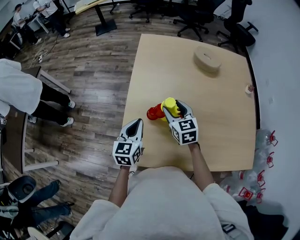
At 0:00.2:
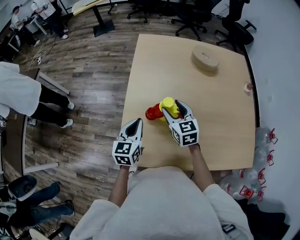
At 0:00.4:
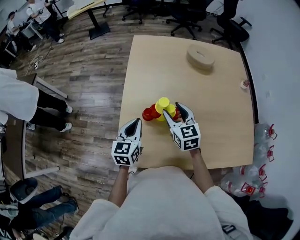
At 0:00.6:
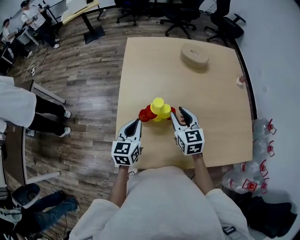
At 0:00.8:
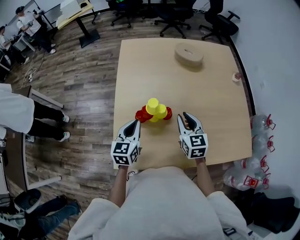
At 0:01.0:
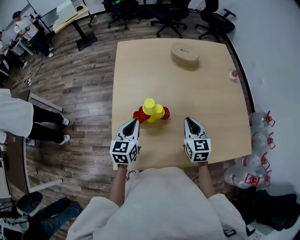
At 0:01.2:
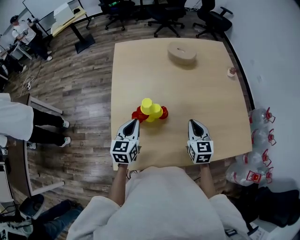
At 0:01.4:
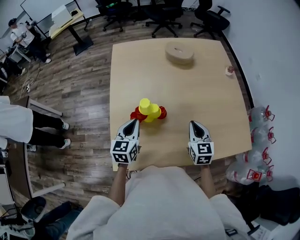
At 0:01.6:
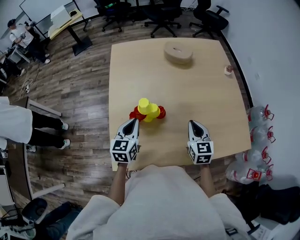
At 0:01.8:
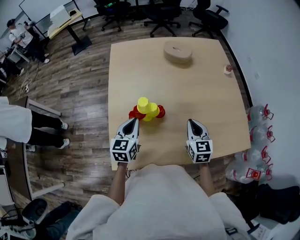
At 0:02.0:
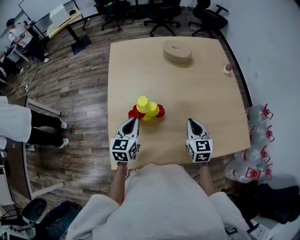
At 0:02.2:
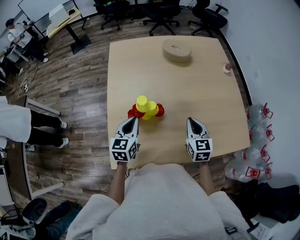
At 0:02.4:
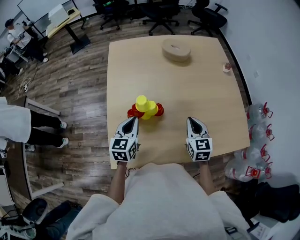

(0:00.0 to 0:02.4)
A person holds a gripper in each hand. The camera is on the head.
0:00.0 - 0:01.2: The left gripper shifts about 5 cm to the right, while the right gripper shifts some 20 cm to the right and backward, turns by approximately 20 degrees, and closes its fingers.
0:01.2 - 0:02.4: The grippers move only a little.

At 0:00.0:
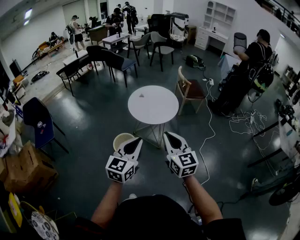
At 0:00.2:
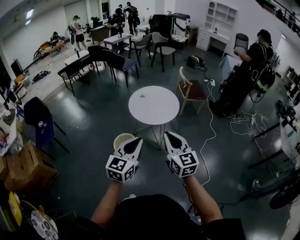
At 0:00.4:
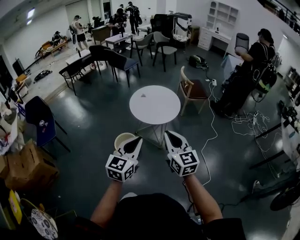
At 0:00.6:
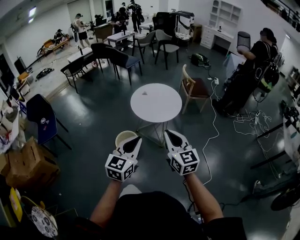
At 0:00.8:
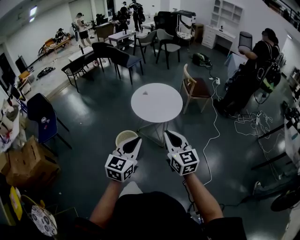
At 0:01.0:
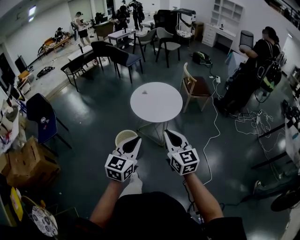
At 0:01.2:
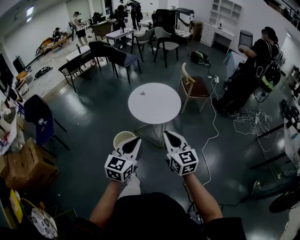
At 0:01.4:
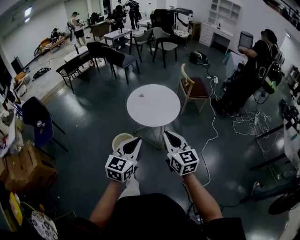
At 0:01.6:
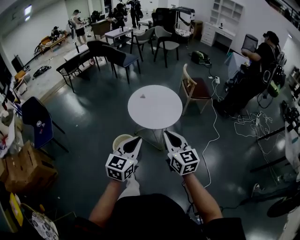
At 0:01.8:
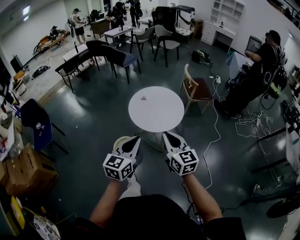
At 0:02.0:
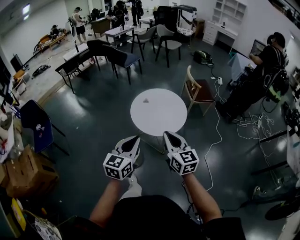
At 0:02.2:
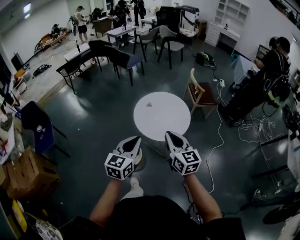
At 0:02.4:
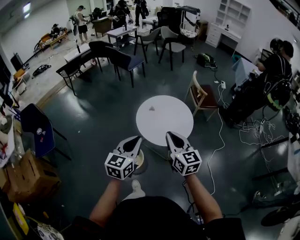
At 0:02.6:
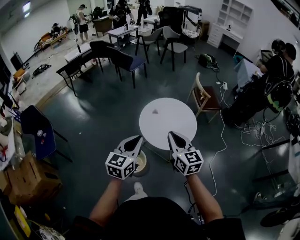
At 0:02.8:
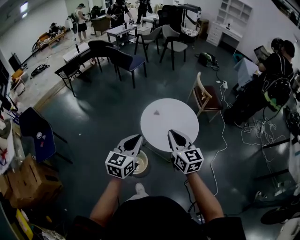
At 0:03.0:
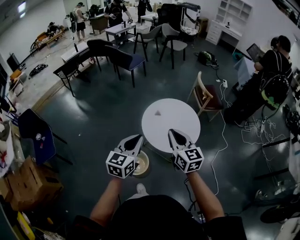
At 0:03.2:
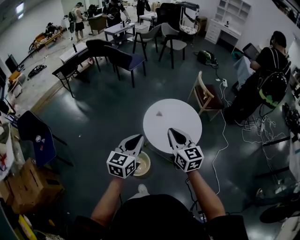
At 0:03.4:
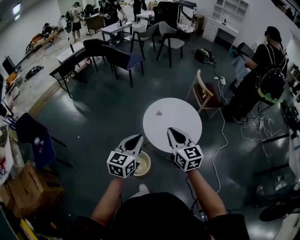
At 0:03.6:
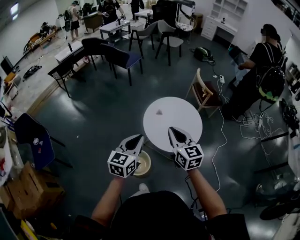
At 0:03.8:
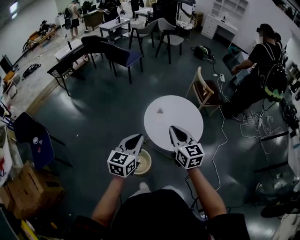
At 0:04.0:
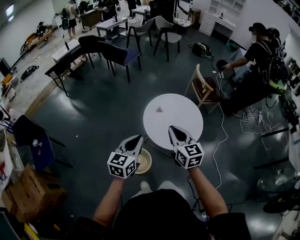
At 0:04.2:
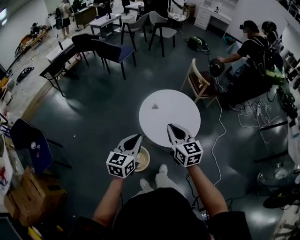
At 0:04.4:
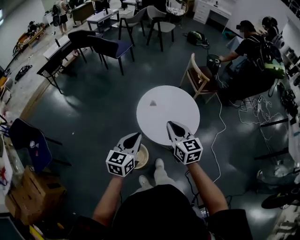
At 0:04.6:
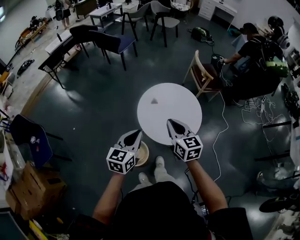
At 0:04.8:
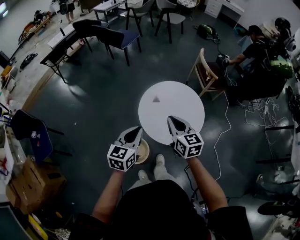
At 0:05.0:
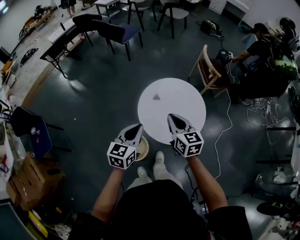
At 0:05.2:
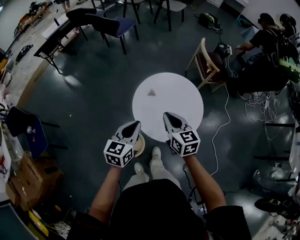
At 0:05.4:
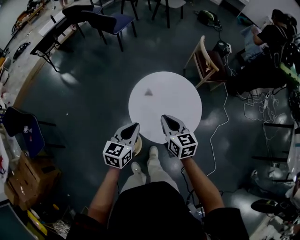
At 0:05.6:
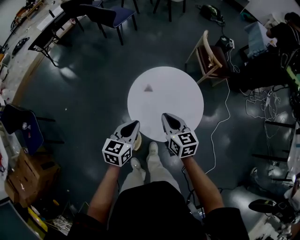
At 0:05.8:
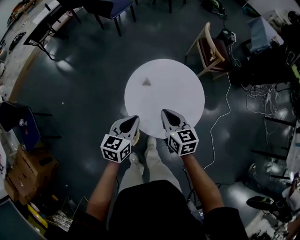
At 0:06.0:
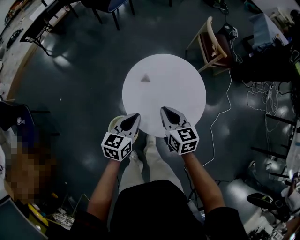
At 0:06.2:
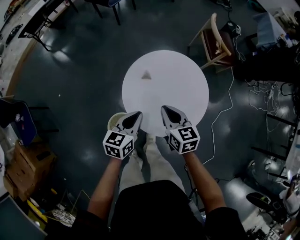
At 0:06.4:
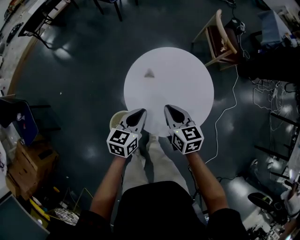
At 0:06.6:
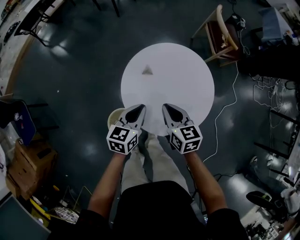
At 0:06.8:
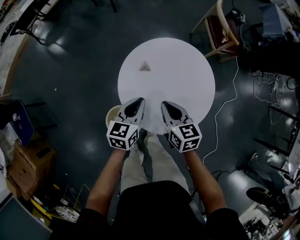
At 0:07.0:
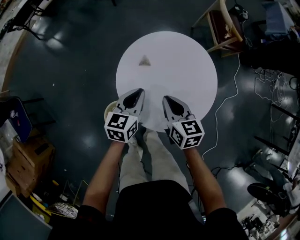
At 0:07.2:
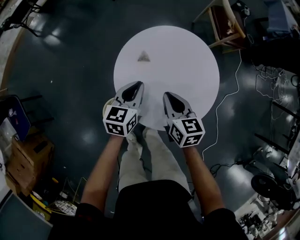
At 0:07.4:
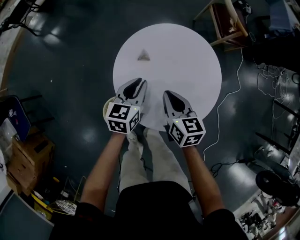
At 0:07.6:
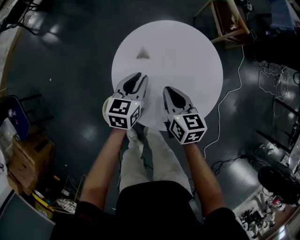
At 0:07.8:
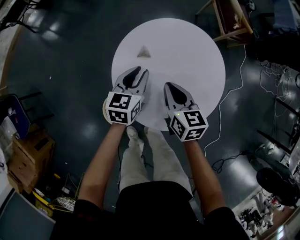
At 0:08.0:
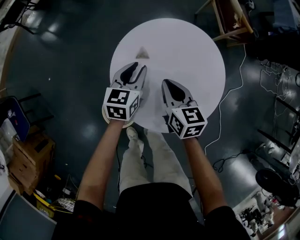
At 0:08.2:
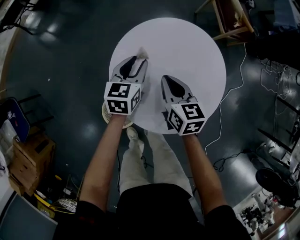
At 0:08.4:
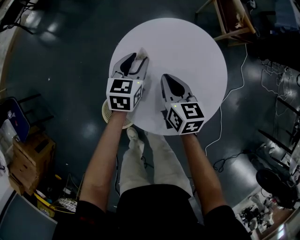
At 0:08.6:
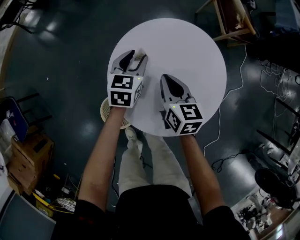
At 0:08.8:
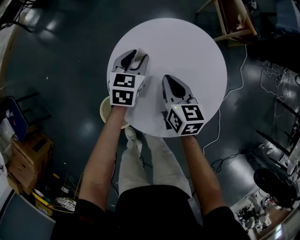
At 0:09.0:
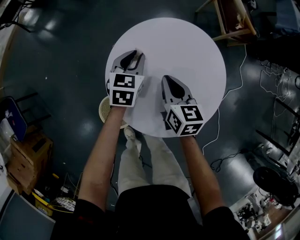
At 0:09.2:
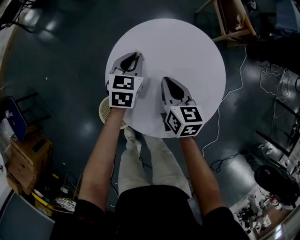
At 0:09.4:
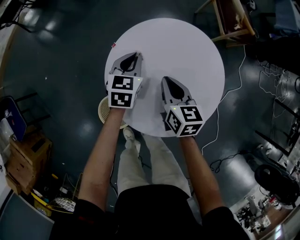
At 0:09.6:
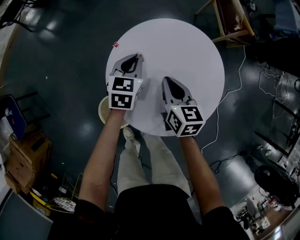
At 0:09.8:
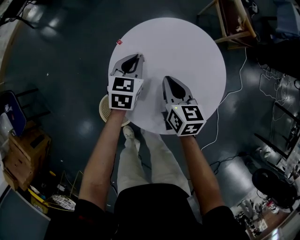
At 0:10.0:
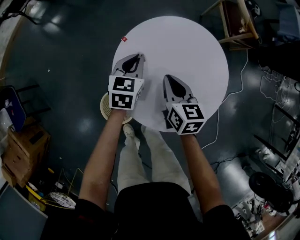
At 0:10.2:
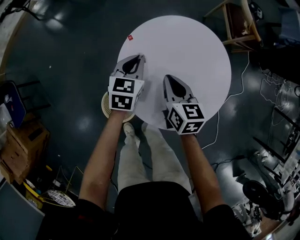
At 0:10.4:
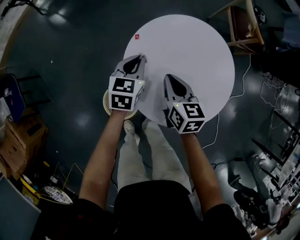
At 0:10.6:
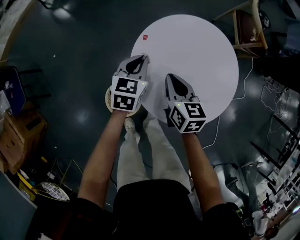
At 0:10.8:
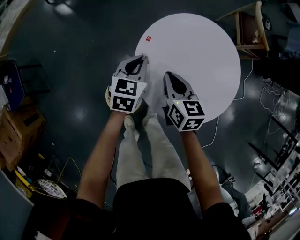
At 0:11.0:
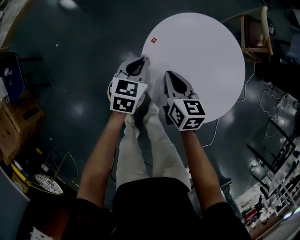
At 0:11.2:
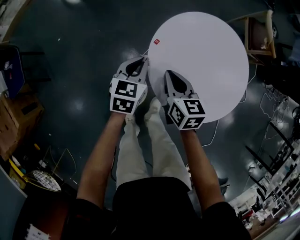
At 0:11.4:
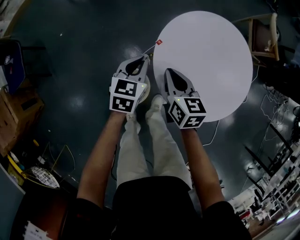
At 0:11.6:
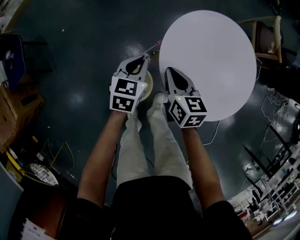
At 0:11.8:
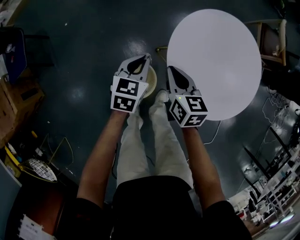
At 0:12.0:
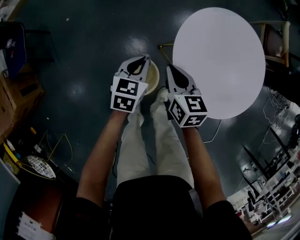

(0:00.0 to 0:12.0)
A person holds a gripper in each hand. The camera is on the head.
0:00.0 - 0:01.6: Both grippers travel together forward, roughly 15 cm.
0:01.6 - 0:03.0: The two grippers go roughly 35 cm forward and to the left.
0:03.0 - 0:04.4: The right gripper goes roughly 10 cm forward and downward; the left gripper travels downward and forward by roughly 10 cm.
0:04.4 - 0:06.0: The right gripper travels downward and forward by approximately 25 cm, while the left gripper moves downward, forward and to the right, approximately 30 cm.
0:06.0 - 0:07.6: Both grippers move downward and forward, about 20 cm.
0:07.6 - 0:09.0: The right gripper travels forward by approximately 5 cm. Meanwhile the left gripper goes about 10 cm forward and downward.
0:09.0 - 0:10.4: The right gripper moves to the left, roughly 5 cm; the left gripper moves backward and to the left, some 10 cm.
0:10.4 - 0:12.0: The left gripper travels to the left and backward by roughly 25 cm. Meanwhile the right gripper travels to the left by some 20 cm.

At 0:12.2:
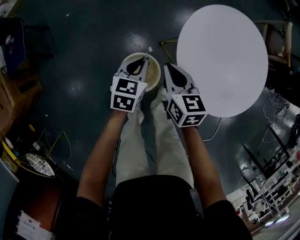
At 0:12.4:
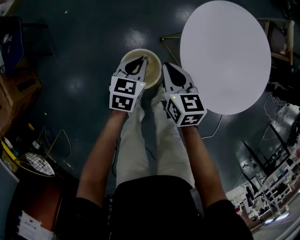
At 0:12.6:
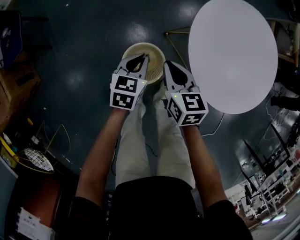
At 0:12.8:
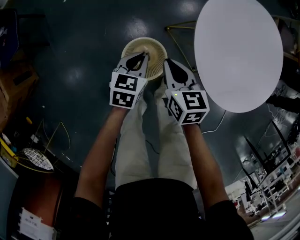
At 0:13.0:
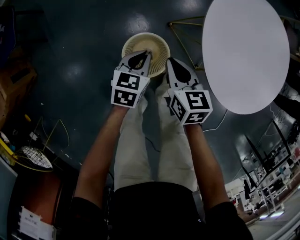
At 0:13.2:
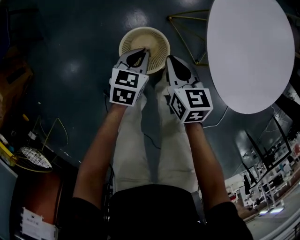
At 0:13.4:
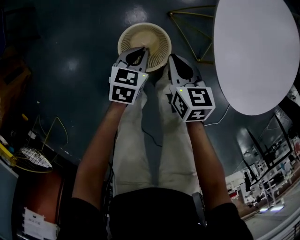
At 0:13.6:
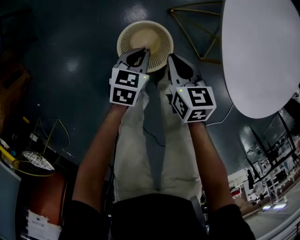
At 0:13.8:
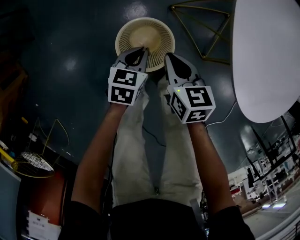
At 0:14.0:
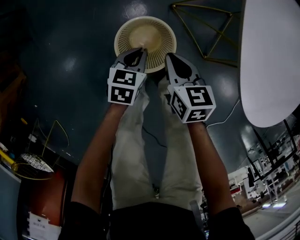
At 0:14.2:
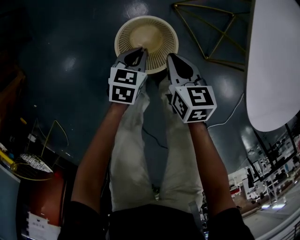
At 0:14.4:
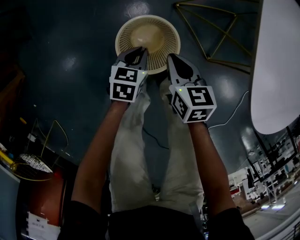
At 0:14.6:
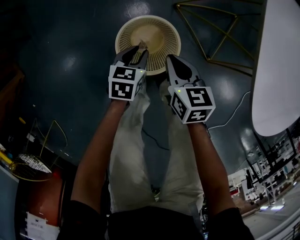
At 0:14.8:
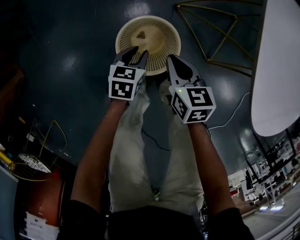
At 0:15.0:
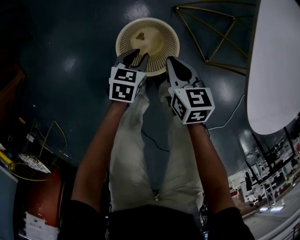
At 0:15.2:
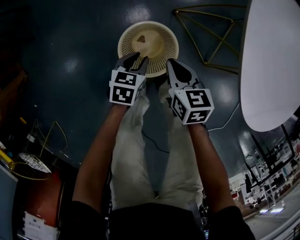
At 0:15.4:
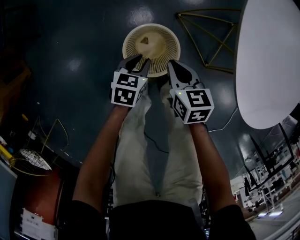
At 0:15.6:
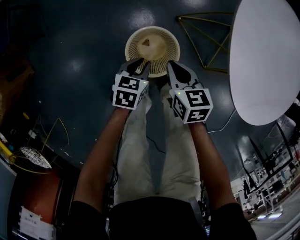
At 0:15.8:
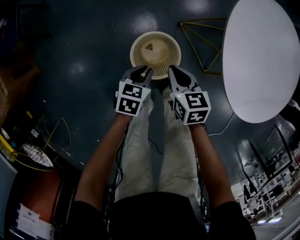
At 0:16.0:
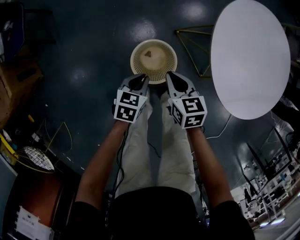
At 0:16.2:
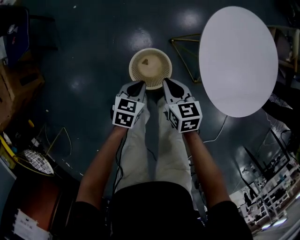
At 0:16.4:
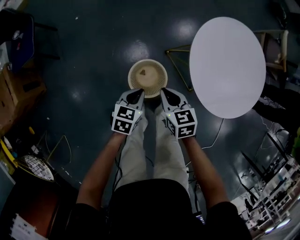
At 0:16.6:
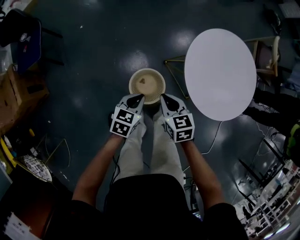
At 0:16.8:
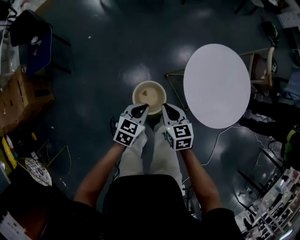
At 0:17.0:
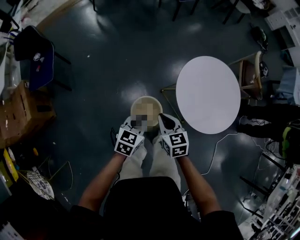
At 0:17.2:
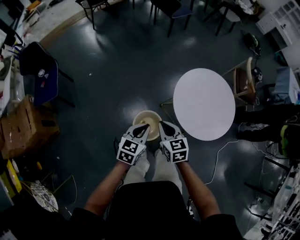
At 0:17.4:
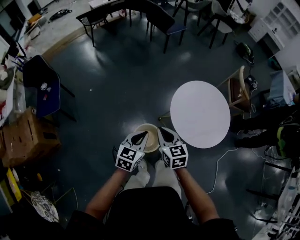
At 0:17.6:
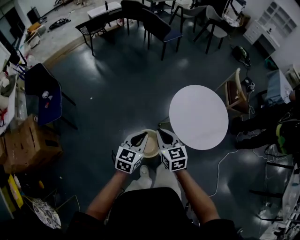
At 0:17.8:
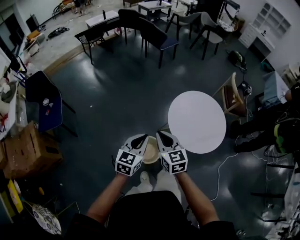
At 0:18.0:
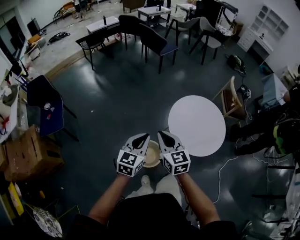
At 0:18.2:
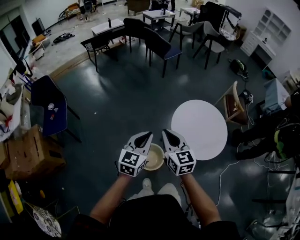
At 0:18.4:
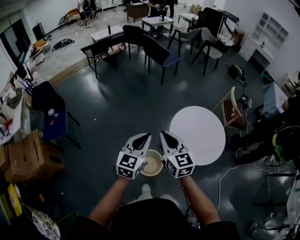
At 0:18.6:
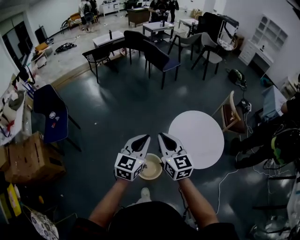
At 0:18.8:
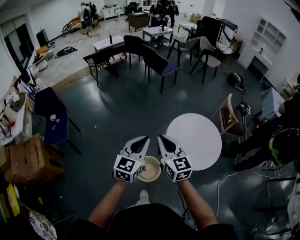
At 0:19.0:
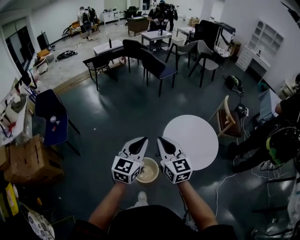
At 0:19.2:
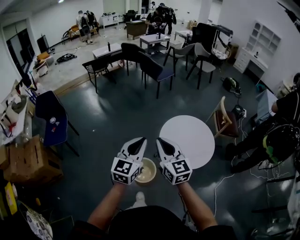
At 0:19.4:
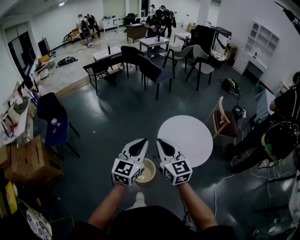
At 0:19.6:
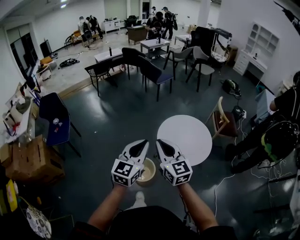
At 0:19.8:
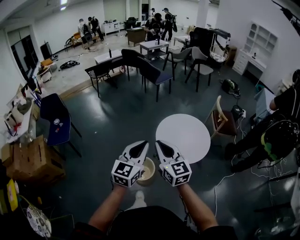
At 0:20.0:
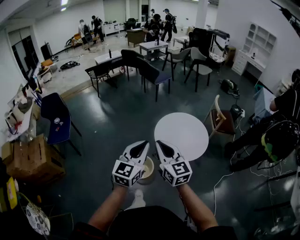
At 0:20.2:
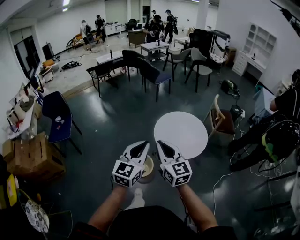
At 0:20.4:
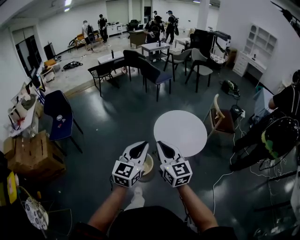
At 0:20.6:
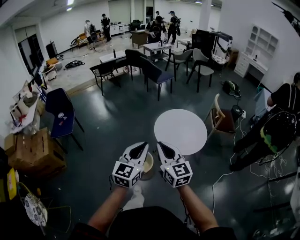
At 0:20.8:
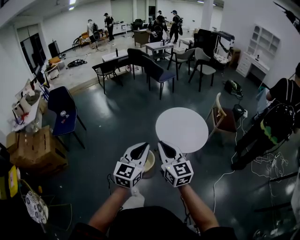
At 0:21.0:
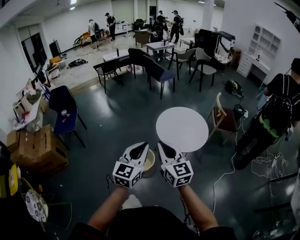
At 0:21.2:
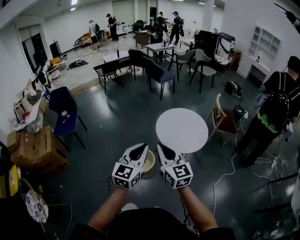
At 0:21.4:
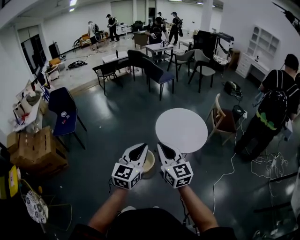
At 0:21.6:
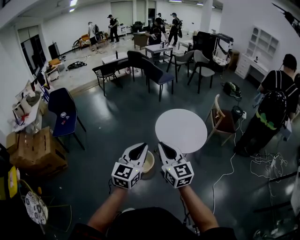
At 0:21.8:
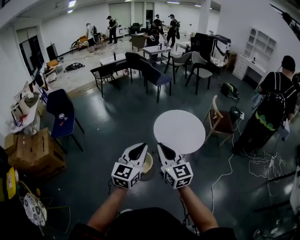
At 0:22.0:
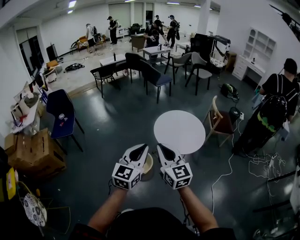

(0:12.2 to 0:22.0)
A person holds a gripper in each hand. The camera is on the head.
0:12.2 - 0:13.6: The left gripper shifts some 25 cm downward and backward. The right gripper is displaced downward by some 20 cm.
0:13.6 - 0:15.0: The two grippers go roughly 10 cm downward. The left gripper opens up.
0:15.0 - 0:16.4: Both grippers move upward, roughly 30 cm. The left gripper closes up.
0:16.4 - 0:17.8: The grippers both shift upward by some 35 cm. The right gripper changes its angle by roughly 30 degrees; the left gripper changes its angle by some 30 degrees.
0:17.8 - 0:19.2: The left gripper travels upward by approximately 20 cm, while the right gripper is displaced upward and backward by about 20 cm.
0:19.2 - 0:20.6: The two grippers go approximately 25 cm backward and to the right.
0:20.6 - 0:22.0: The right gripper moves roughly 5 cm; the left gripper changes place by roughly 5 cm.
